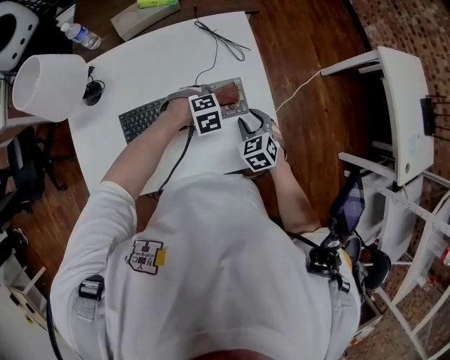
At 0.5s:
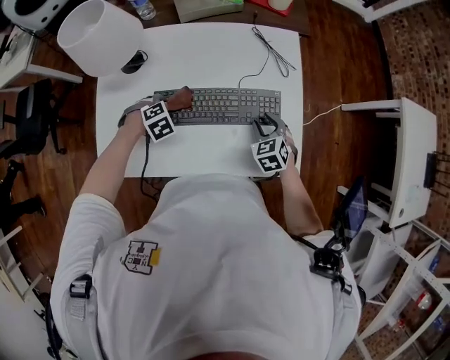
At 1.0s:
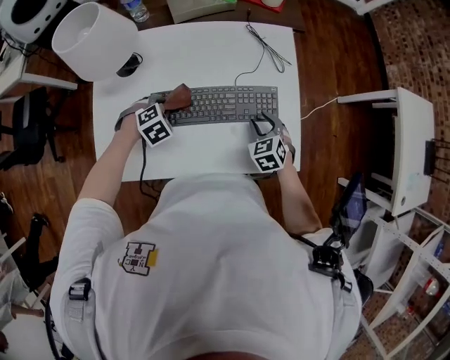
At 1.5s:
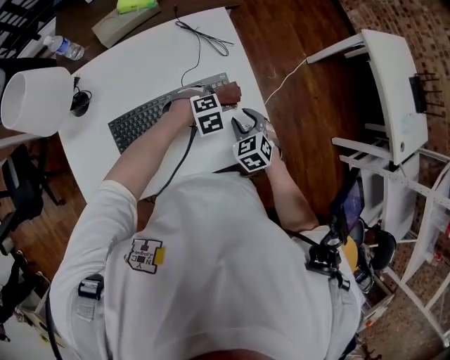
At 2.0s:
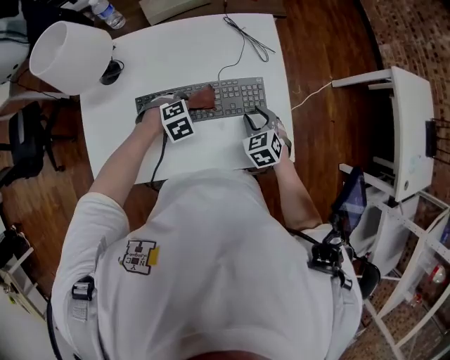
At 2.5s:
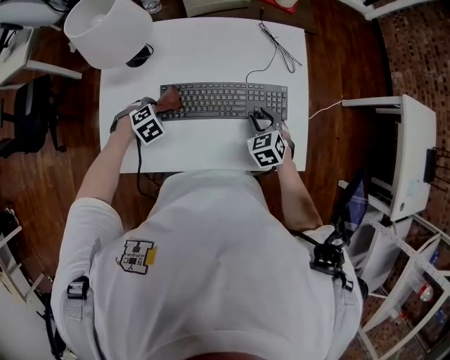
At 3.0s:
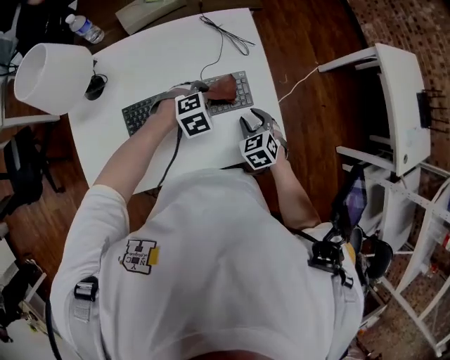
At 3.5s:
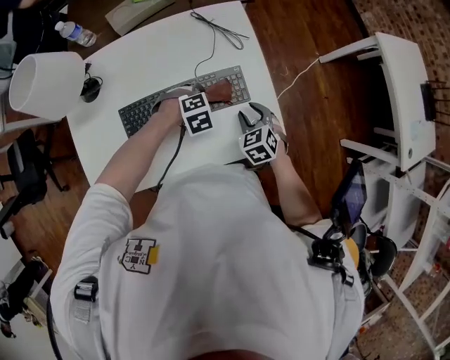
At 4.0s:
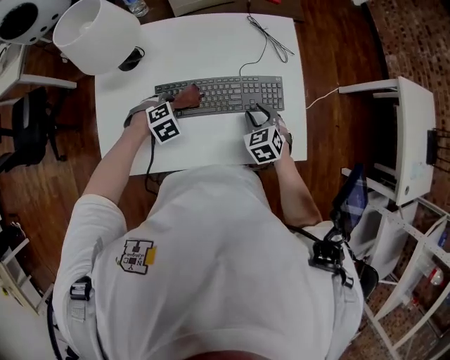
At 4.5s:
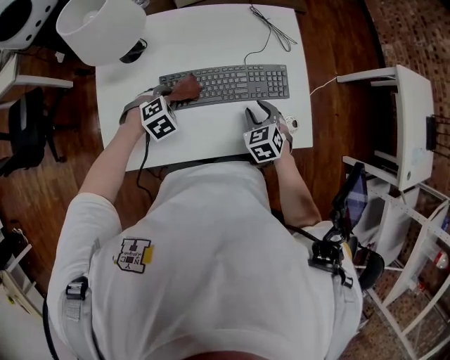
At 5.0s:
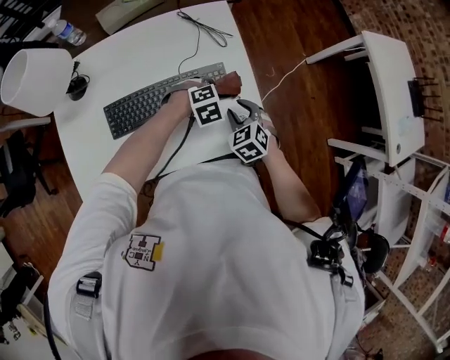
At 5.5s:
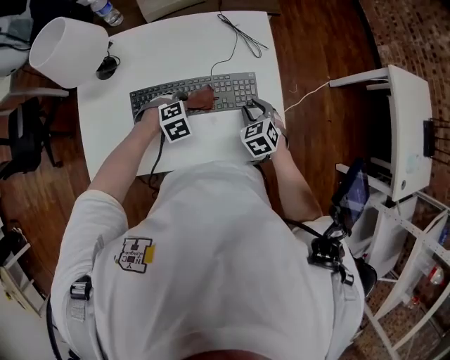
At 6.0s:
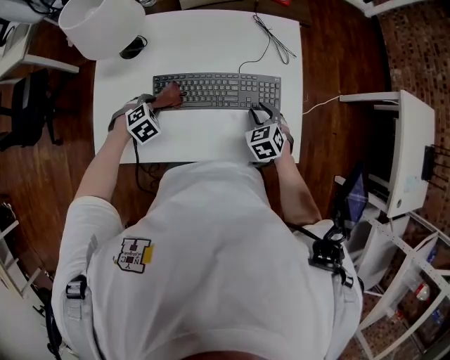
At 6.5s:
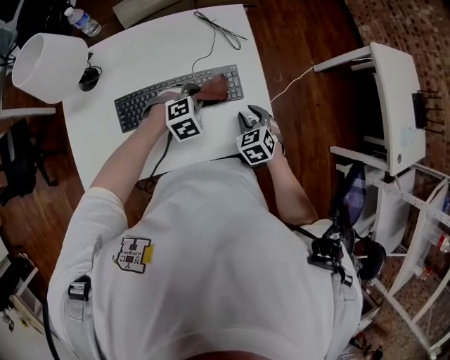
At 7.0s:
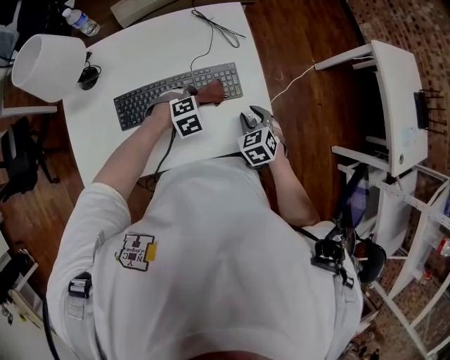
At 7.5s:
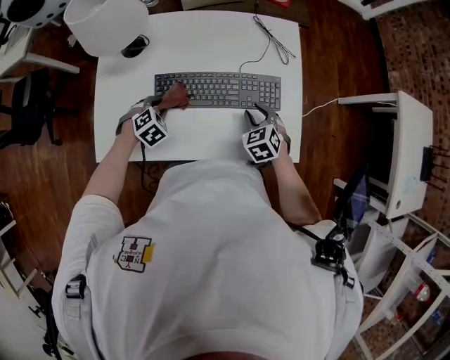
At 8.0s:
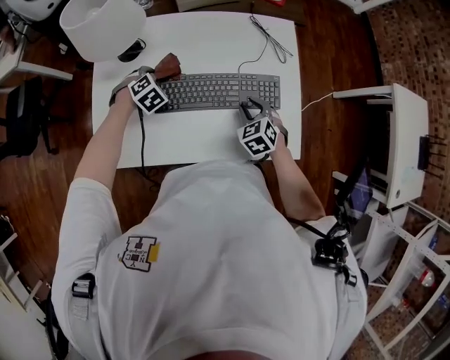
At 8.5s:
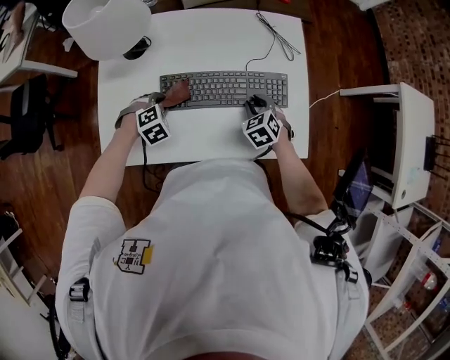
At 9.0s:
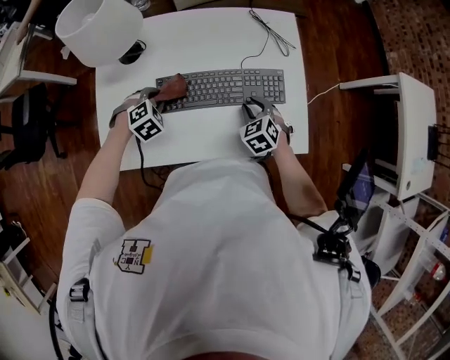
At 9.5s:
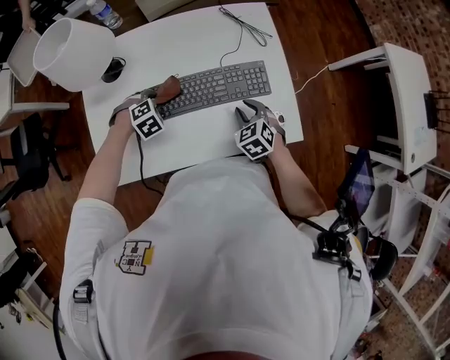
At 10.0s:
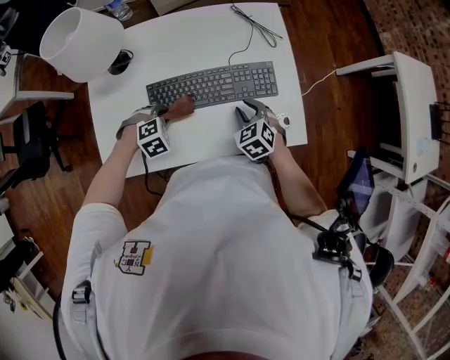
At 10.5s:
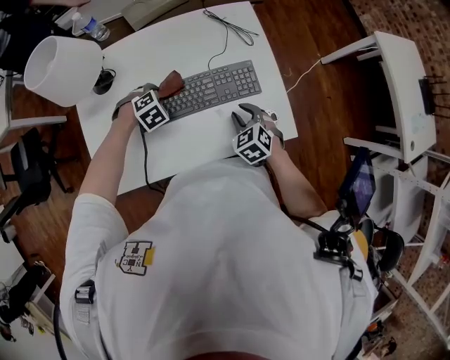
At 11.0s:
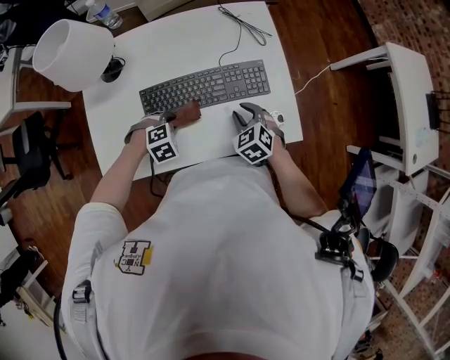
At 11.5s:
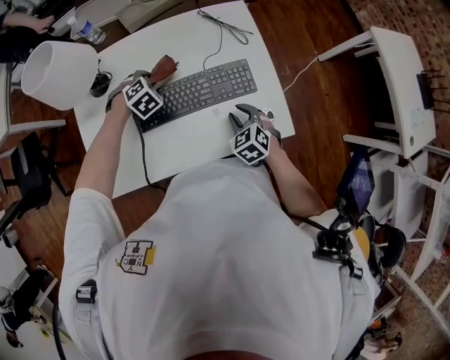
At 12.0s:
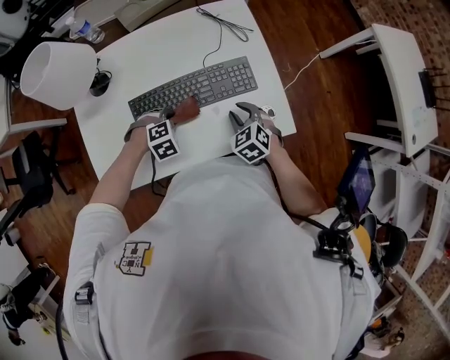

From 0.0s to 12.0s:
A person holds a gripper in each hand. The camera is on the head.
From 2.0s to 4.0s: The right gripper shifts by some 5 cm.
From 8.0s to 10.0s: The left gripper swings forward and backward, about 10 cm each way, with 2 reversals, and swivels some 20 degrees.

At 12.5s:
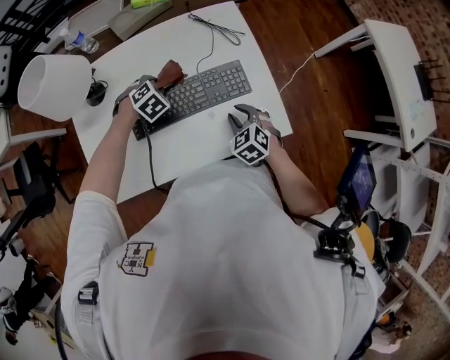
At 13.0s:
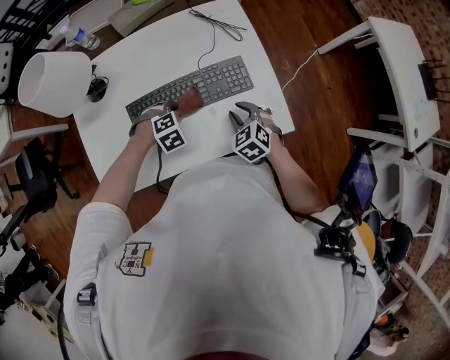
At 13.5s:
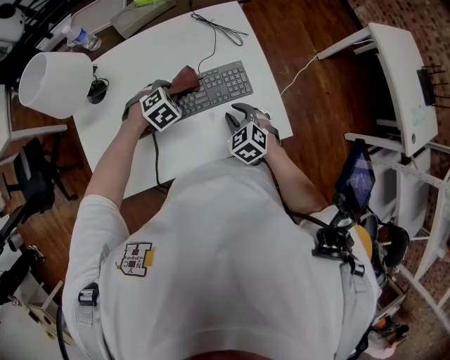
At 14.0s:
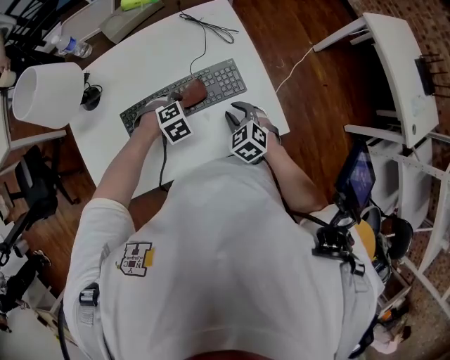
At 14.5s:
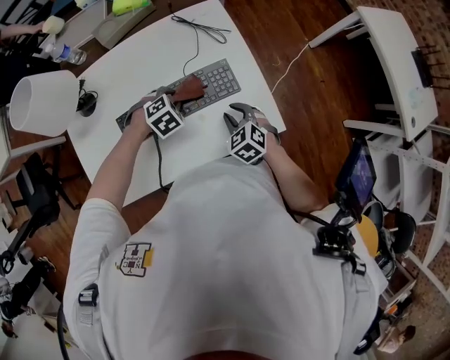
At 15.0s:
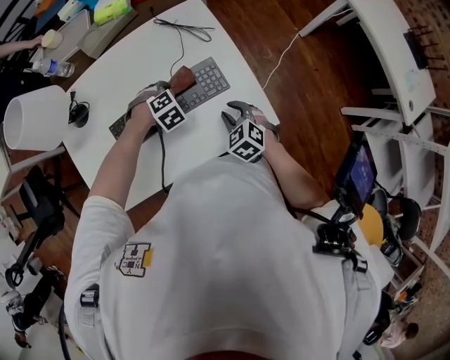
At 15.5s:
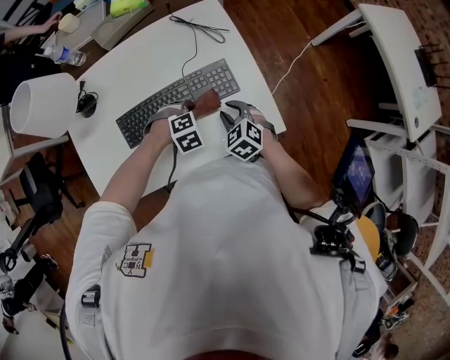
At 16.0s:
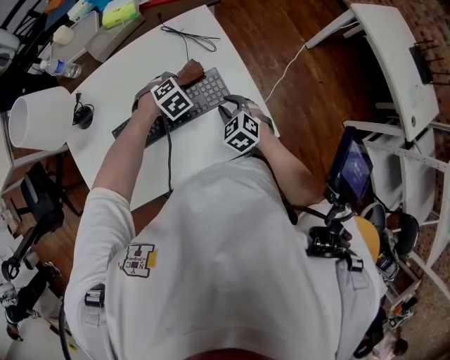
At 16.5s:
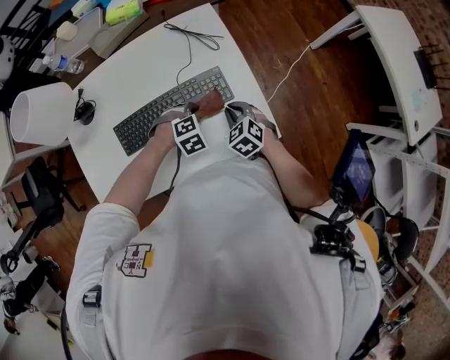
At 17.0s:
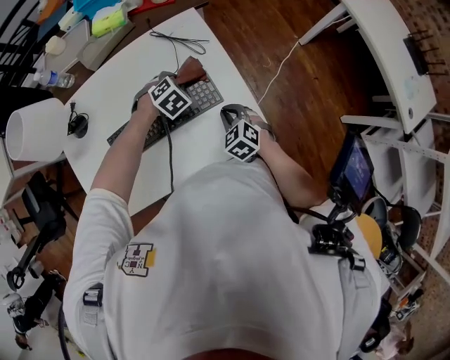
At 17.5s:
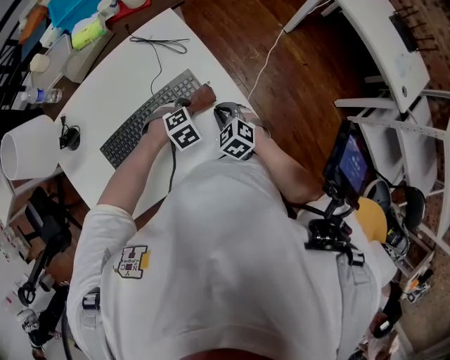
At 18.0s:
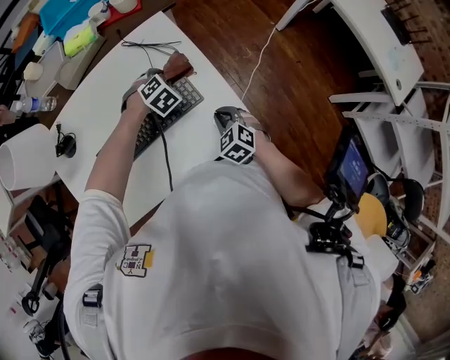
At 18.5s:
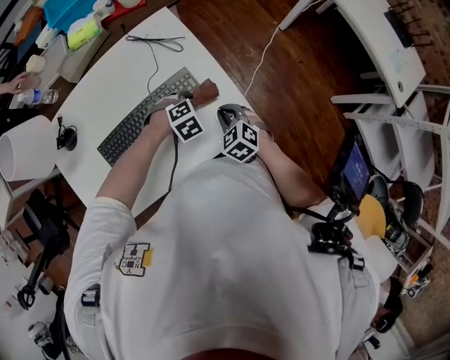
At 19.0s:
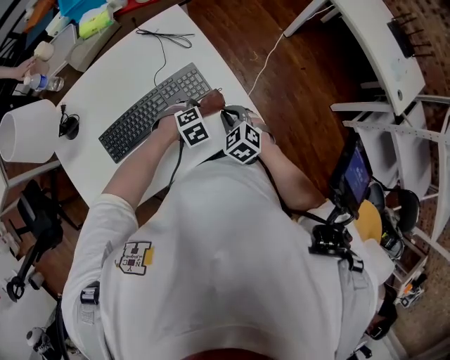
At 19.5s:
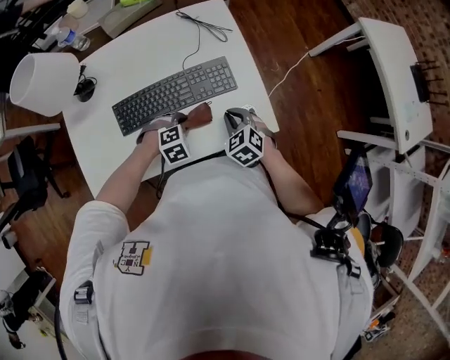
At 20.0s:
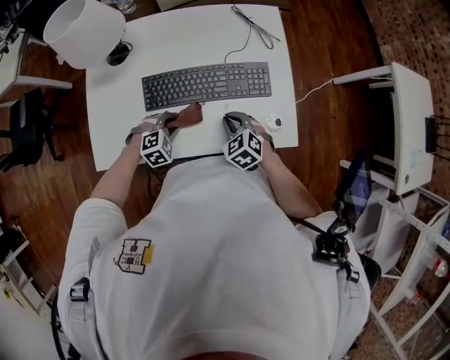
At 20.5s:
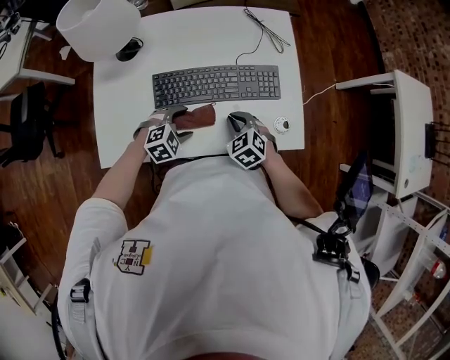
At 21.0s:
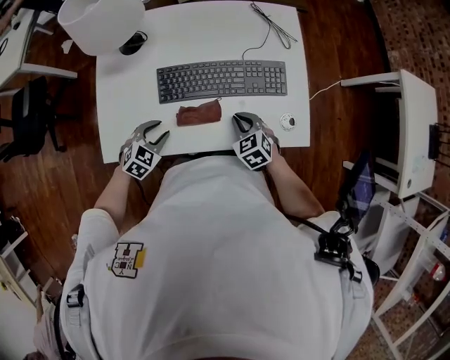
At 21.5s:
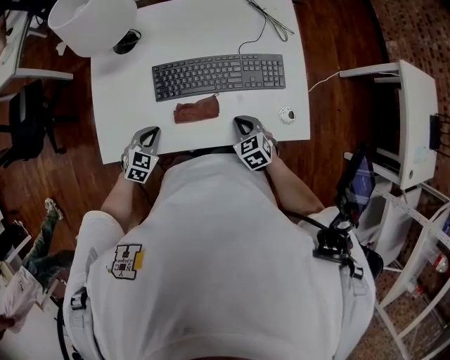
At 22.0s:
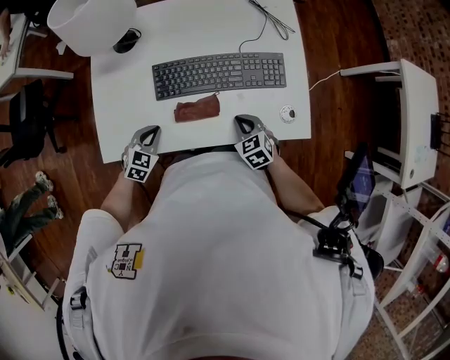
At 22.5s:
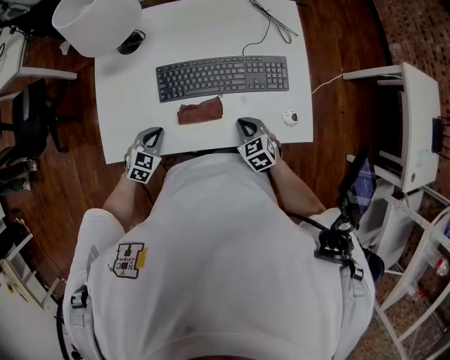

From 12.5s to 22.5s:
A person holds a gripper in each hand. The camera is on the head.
From 12.5s to 14.5s: The left gripper goes forward and backward, some 10 cm each way, reversing 2 times.
From 14.5s to 16.5s: The left gripper moves forward and backward over approximately 15 cm, changing direction 2 times.
From 16.5s to 18.5s: The left gripper moves forward and backward over some 15 cm, changing direction 3 times; the right gripper travels to the right by approximately 5 cm.
From 18.5s to 20.5s: The left gripper changes place by approximately 30 cm, rotates about 30 degrees, and opens its fingers, while the right gripper changes place by some 20 cm, and rotates approximately 20 degrees.
From 20.5s to 22.5s: The left gripper heads to the left, covering roughly 15 cm, changes its angle by approximately 40 degrees, and closes; the right gripper moves about 5 cm.

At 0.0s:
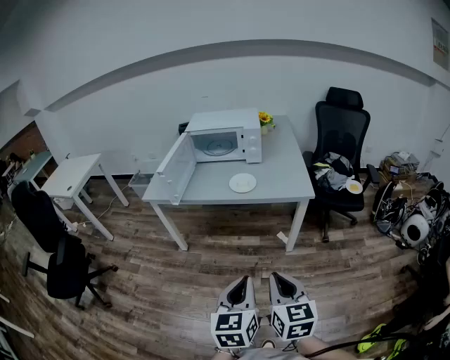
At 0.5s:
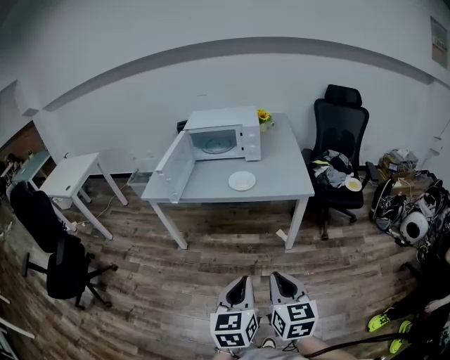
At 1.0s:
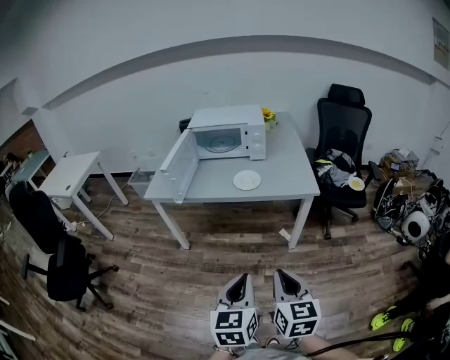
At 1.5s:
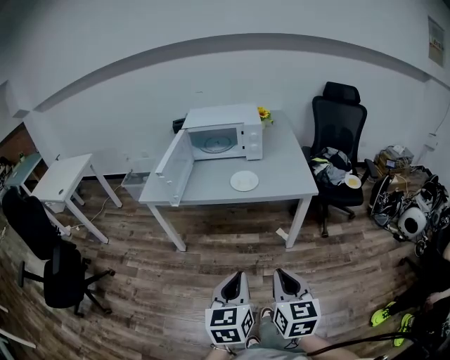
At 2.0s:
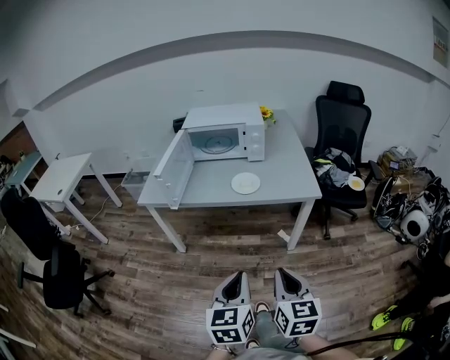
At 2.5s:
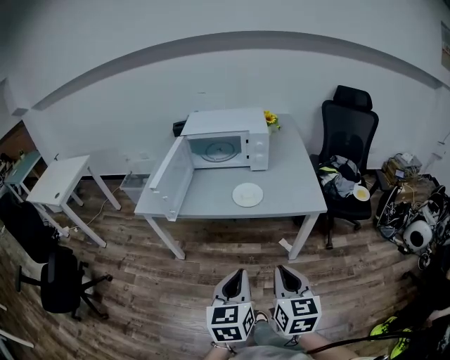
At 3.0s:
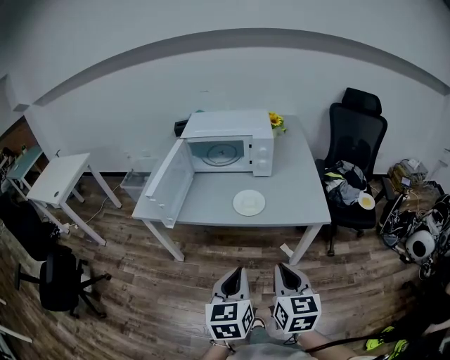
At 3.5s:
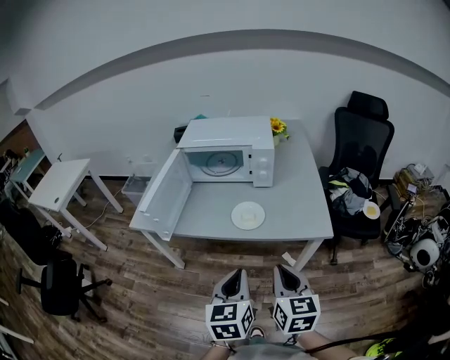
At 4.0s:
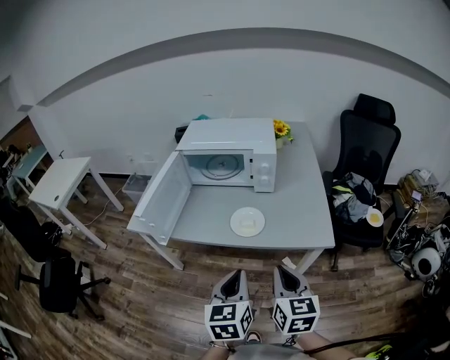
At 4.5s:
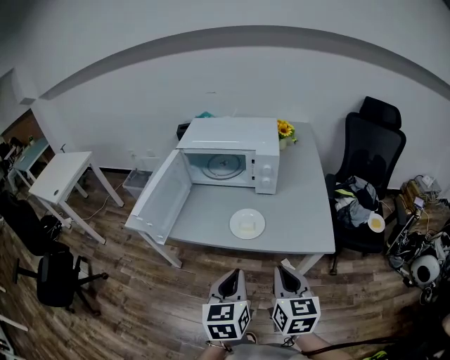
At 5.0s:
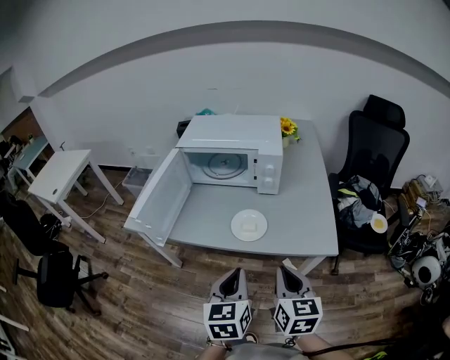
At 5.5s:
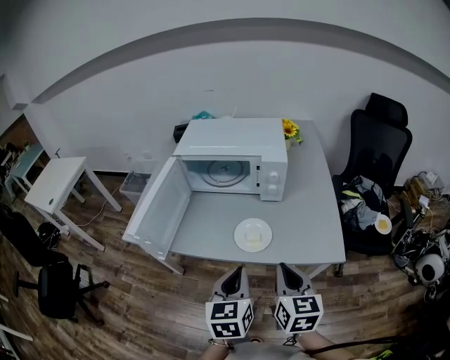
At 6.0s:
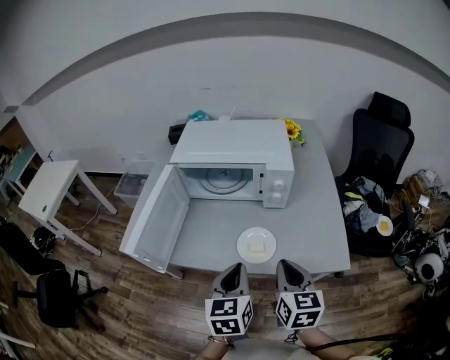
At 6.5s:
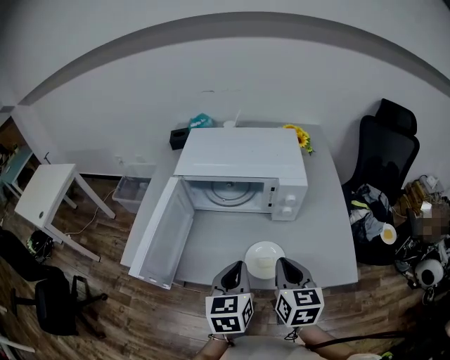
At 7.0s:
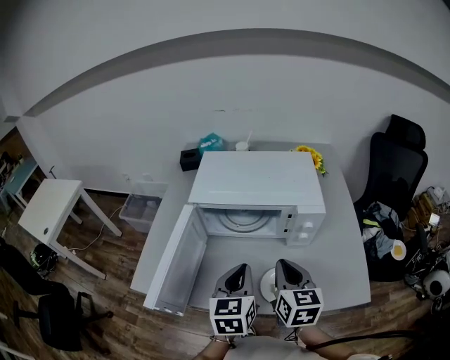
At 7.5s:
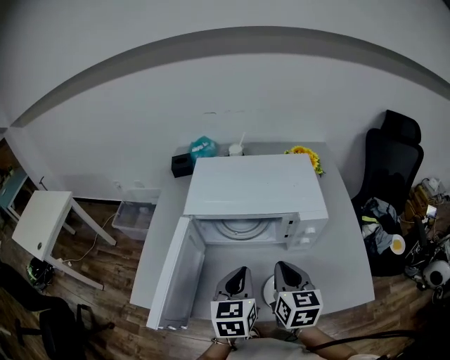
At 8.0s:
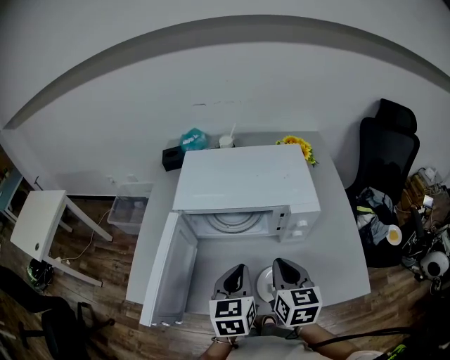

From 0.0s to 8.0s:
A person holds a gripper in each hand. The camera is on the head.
From 0.0s to 2.0s: The left gripper travels forward and to the left by about 10 cm, while the right gripper is displaced forward by about 5 cm.
From 2.0s to 4.0s: Both grippers travel together forward, some 25 cm.
From 4.0s to 6.0s: Both grippers travel together forward, roughly 15 cm.
From 6.0s to 8.0s: The right gripper shifts approximately 20 cm forward and to the left. The left gripper is displaced forward by approximately 15 cm.
